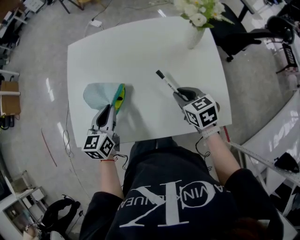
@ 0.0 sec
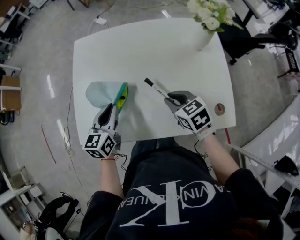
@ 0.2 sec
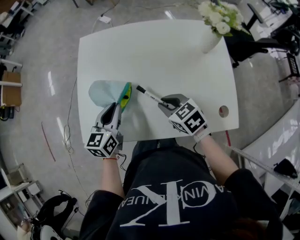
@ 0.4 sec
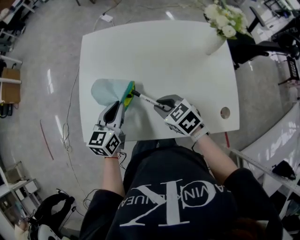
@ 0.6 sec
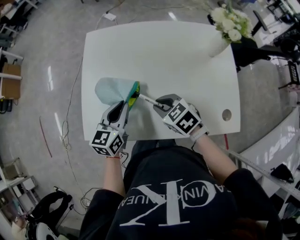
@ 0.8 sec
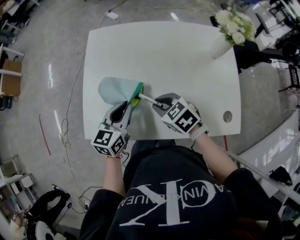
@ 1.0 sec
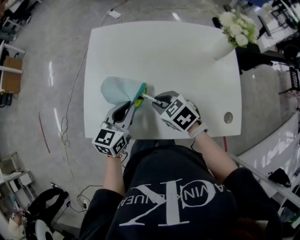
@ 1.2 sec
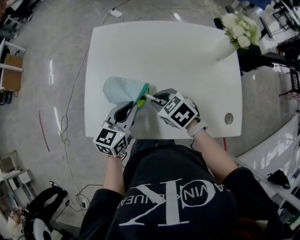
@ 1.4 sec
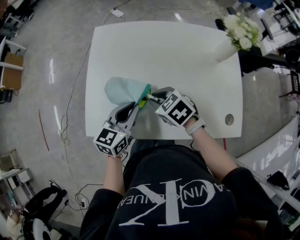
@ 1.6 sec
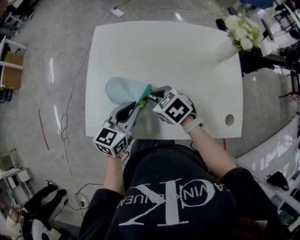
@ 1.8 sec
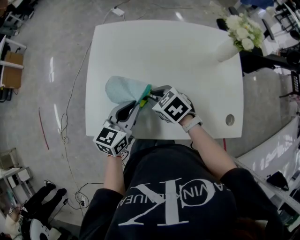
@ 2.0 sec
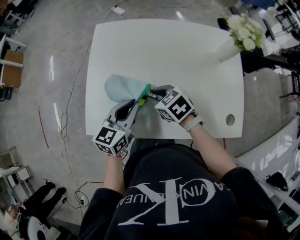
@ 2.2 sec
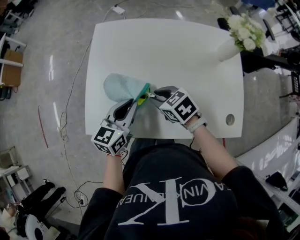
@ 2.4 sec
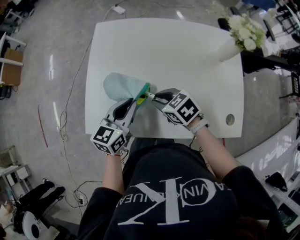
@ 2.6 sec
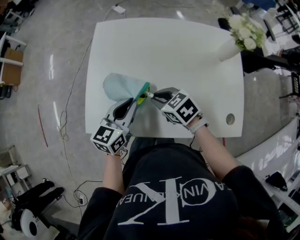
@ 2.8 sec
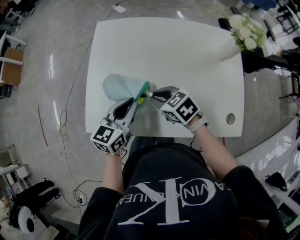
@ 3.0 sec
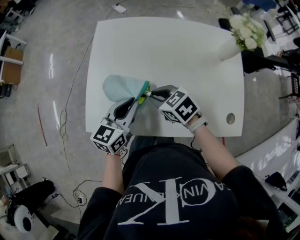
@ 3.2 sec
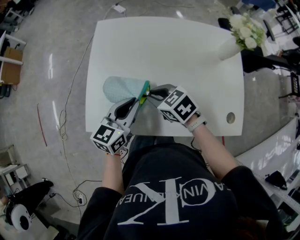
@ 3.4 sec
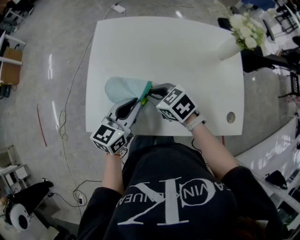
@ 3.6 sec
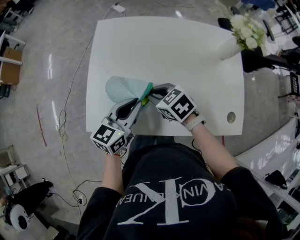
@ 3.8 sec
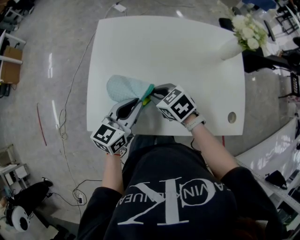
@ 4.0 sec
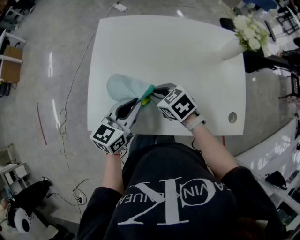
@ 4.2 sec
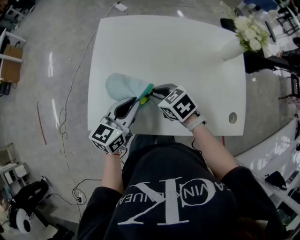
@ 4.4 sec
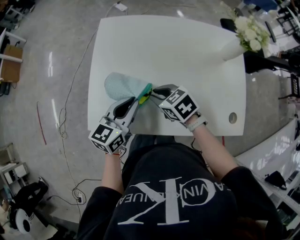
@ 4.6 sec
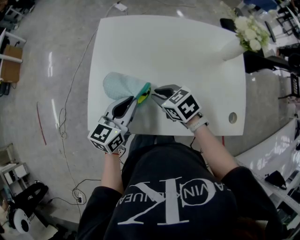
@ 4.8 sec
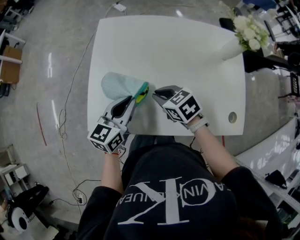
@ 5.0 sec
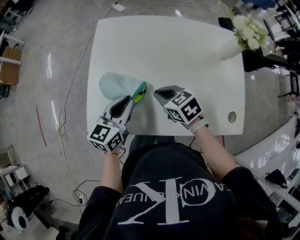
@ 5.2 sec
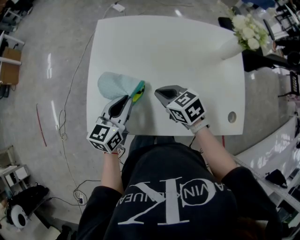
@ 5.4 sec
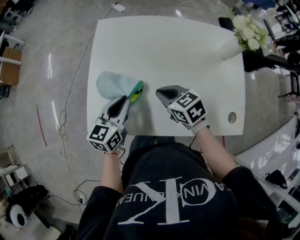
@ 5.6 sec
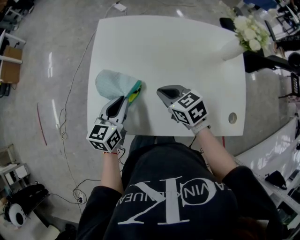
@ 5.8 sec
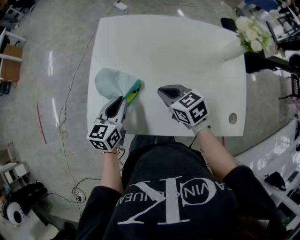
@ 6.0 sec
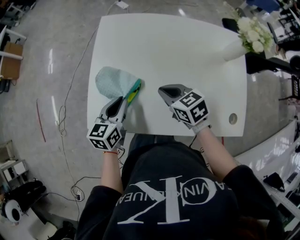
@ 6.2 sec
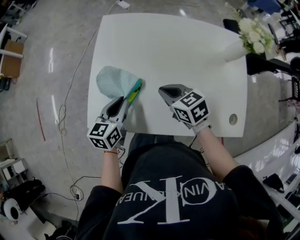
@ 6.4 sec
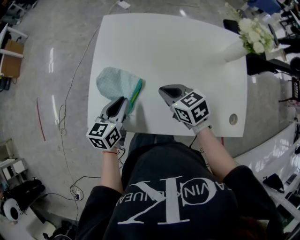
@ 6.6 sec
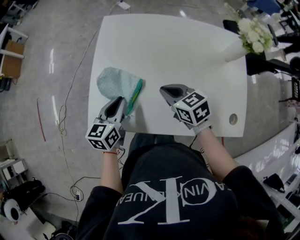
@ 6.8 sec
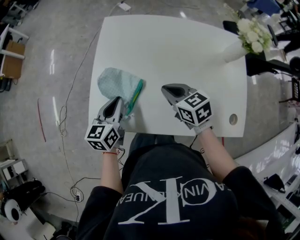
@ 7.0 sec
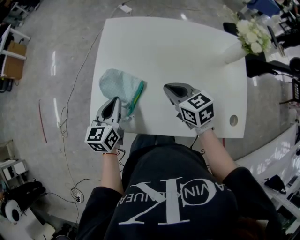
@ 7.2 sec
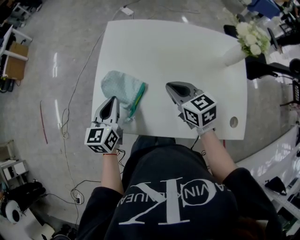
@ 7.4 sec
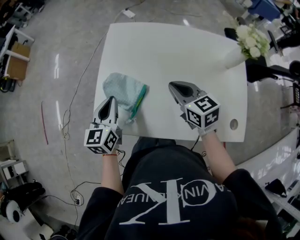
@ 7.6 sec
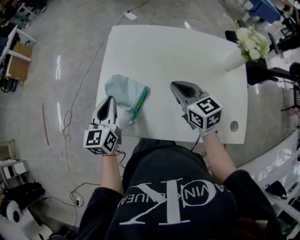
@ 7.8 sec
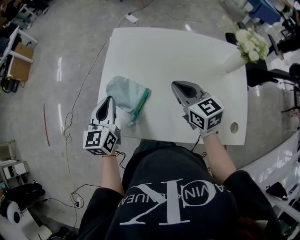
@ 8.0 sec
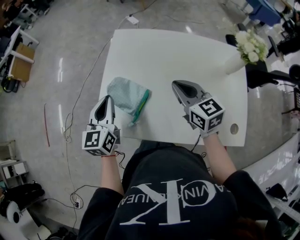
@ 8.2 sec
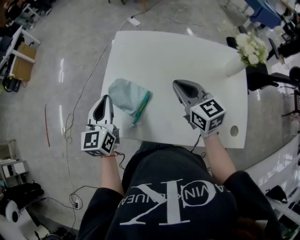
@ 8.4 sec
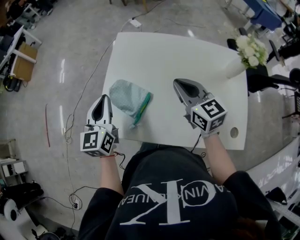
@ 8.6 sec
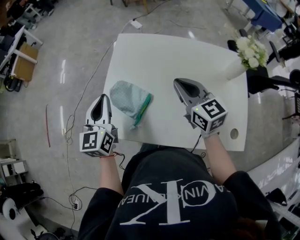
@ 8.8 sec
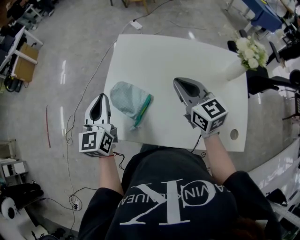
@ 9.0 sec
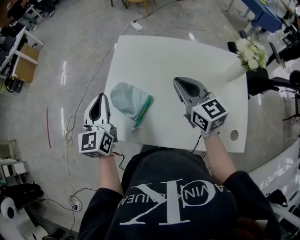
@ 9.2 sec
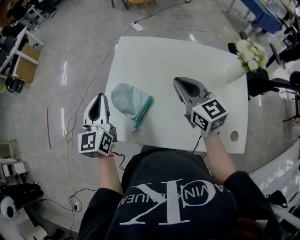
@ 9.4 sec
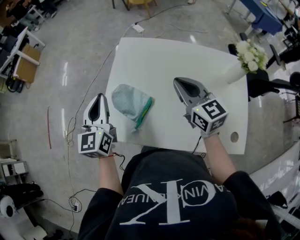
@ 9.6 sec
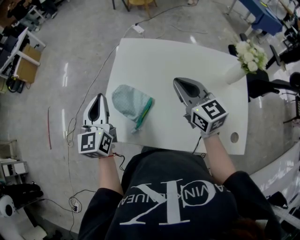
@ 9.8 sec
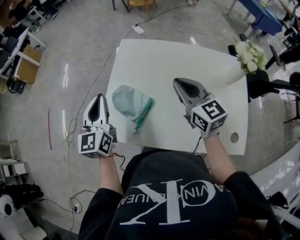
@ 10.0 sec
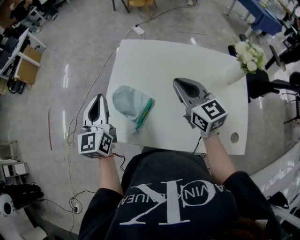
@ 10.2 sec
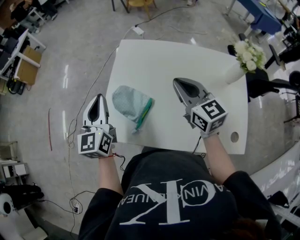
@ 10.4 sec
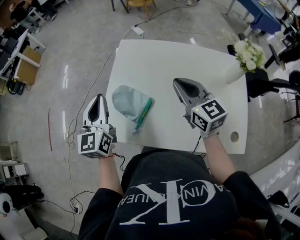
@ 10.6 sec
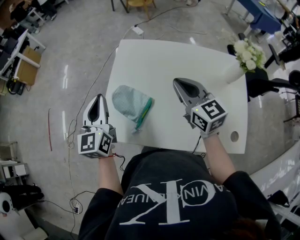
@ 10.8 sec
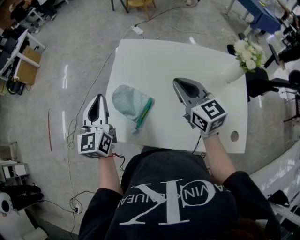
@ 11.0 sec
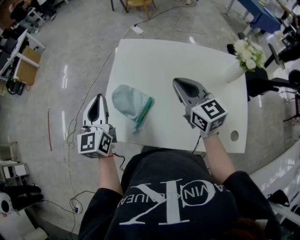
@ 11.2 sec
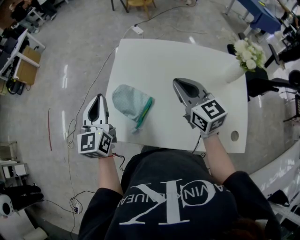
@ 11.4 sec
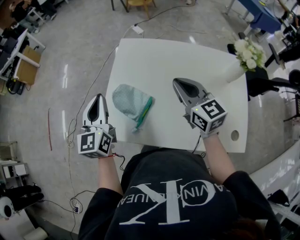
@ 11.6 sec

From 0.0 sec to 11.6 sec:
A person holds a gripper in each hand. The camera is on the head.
From 0.0 sec to 1.4 sec: The right gripper moves to the left, about 20 cm, and rotates about 30 degrees.
From 1.4 sec to 4.4 sec: The grippers stay close to where they were, moving slightly.
From 4.4 sec to 5.8 sec: The left gripper moves roughly 5 cm.
From 5.8 sec to 7.2 sec: There are only small adjustments of the grippers.
From 7.2 sec to 8.8 sec: Both grippers travel together upward, some 10 cm. The right gripper swivels about 20 degrees; the left gripper rotates approximately 20 degrees.
From 8.8 sec to 10.2 sec: There are only small adjustments of the grippers.
From 10.2 sec to 11.6 sec: Neither gripper changes place.

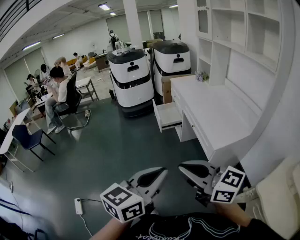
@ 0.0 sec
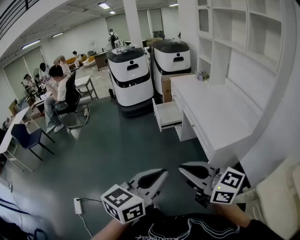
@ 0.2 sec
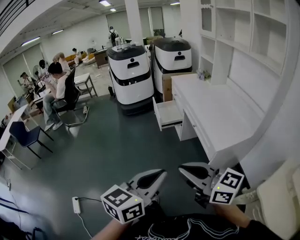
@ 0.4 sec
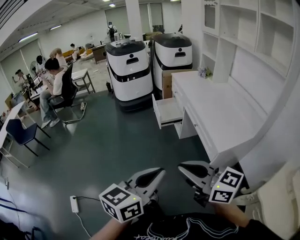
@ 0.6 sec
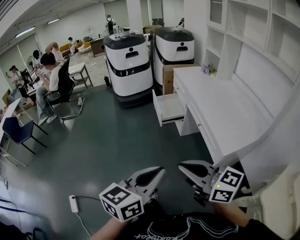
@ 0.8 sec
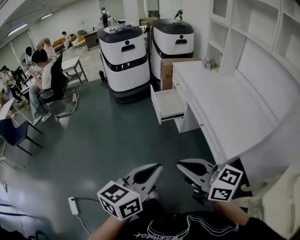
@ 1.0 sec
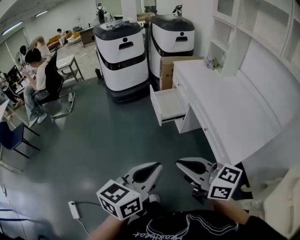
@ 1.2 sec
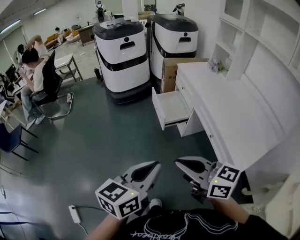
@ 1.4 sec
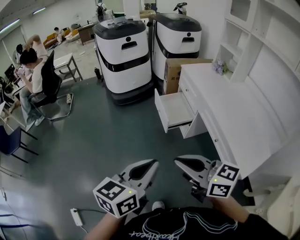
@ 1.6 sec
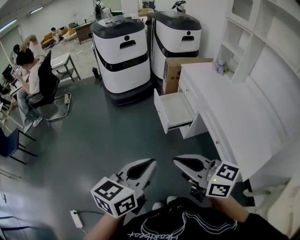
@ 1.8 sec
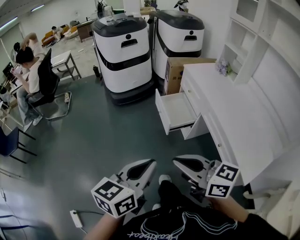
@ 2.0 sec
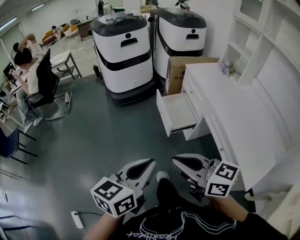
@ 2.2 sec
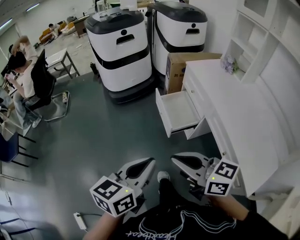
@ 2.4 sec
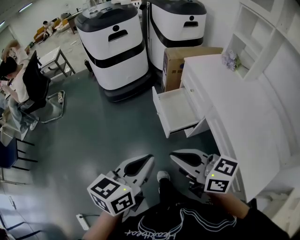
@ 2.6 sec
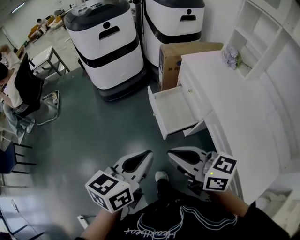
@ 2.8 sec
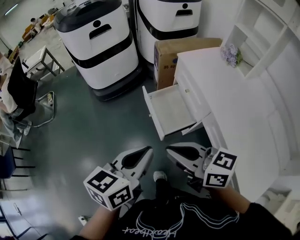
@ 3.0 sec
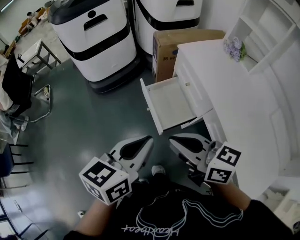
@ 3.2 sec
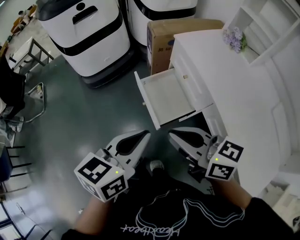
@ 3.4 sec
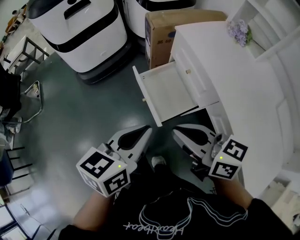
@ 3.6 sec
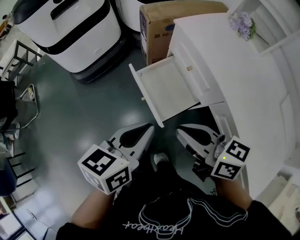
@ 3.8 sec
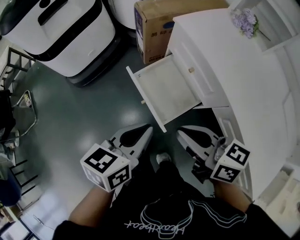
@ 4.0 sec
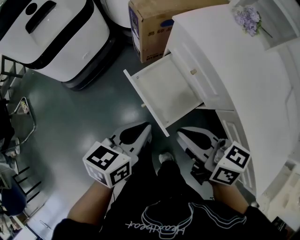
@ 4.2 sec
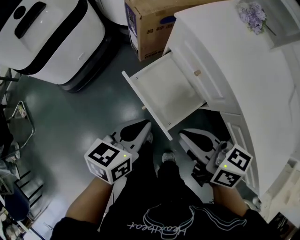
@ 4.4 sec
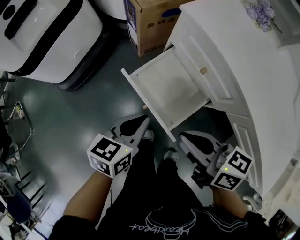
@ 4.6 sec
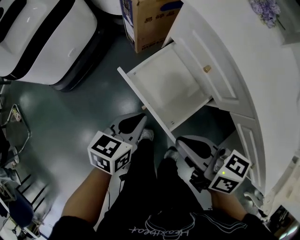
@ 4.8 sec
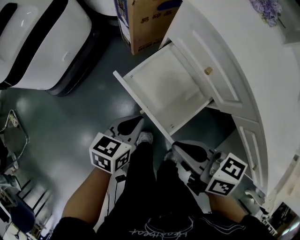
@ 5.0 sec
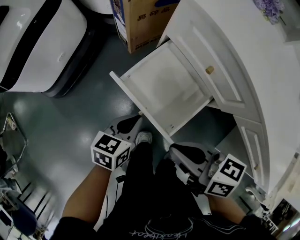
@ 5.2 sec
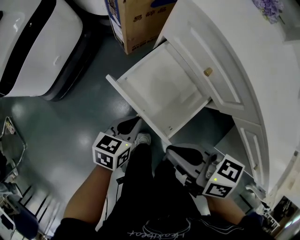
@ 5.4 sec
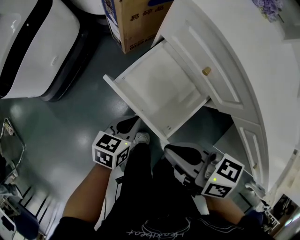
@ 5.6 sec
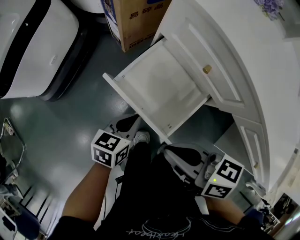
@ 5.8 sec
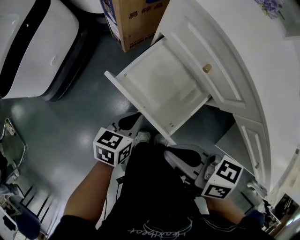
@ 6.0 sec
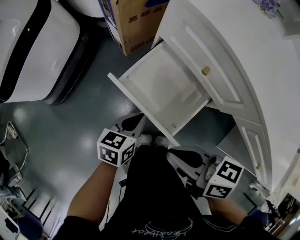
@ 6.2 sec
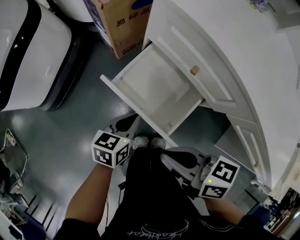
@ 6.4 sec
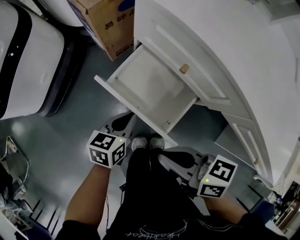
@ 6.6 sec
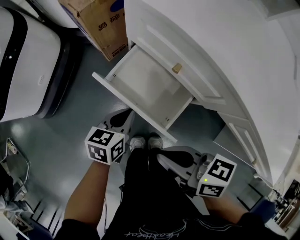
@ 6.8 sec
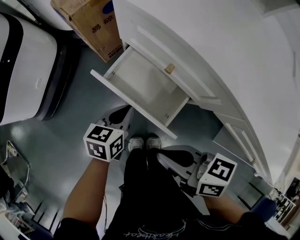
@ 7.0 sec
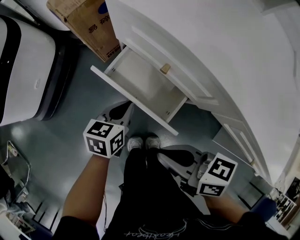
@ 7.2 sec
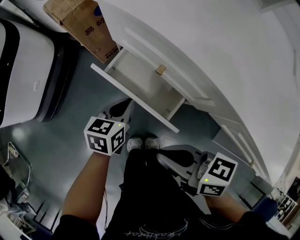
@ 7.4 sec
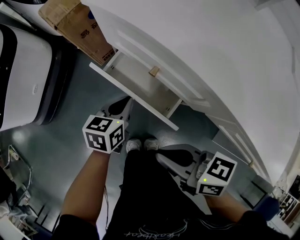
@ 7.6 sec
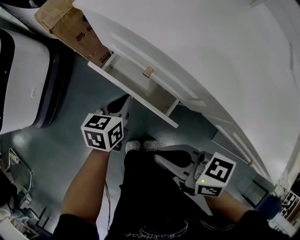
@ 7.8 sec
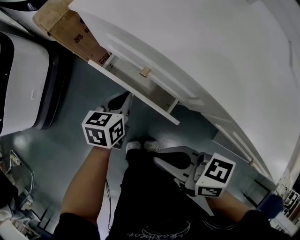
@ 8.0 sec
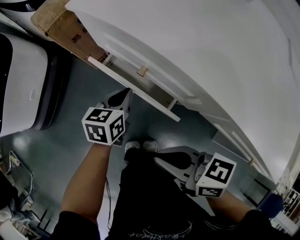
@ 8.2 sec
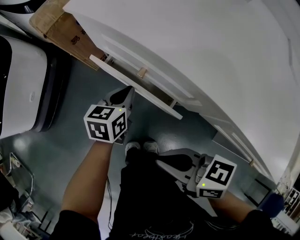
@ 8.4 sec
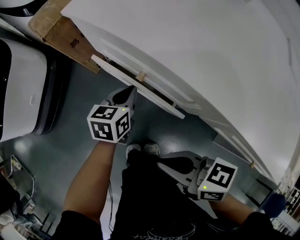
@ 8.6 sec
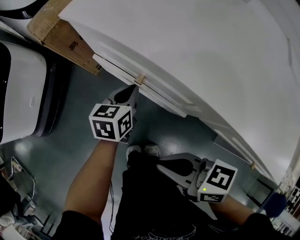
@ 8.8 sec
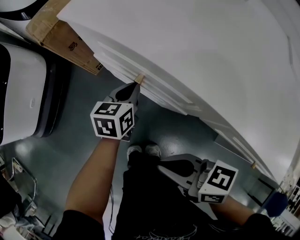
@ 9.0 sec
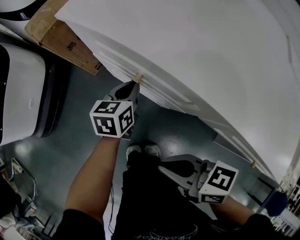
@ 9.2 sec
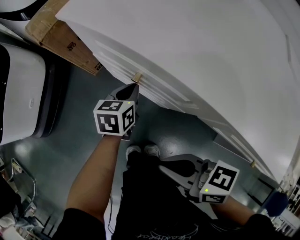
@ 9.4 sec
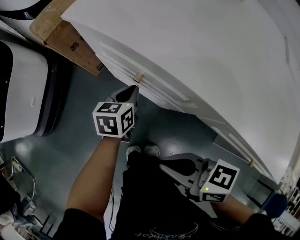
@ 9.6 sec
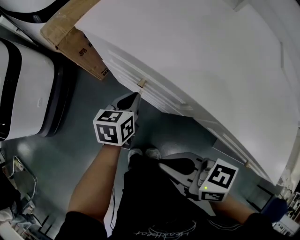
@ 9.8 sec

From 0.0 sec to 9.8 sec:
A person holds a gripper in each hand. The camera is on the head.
From 0.0 sec to 1.4 sec: The two grippers go some 30 cm forward.
From 1.4 sec to 2.8 sec: The grippers both shift forward by some 35 cm.
From 2.8 sec to 4.2 sec: The grippers both shift forward and downward by roughly 30 cm. The left gripper changes its angle by about 20 degrees; the right gripper turns by some 30 degrees.
From 4.2 sec to 5.6 sec: The left gripper travels downward by approximately 25 cm. Meanwhile the right gripper travels downward by roughly 15 cm.
From 5.6 sec to 7.0 sec: The left gripper goes about 10 cm to the right and forward. Meanwhile the right gripper moves to the right, some 5 cm.
From 7.0 sec to 8.4 sec: The left gripper travels to the right and forward by some 10 cm.
From 8.4 sec to 9.8 sec: There are only small adjustments of the grippers.

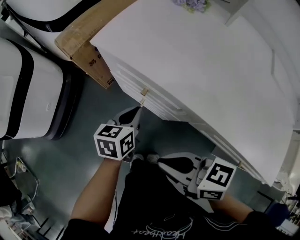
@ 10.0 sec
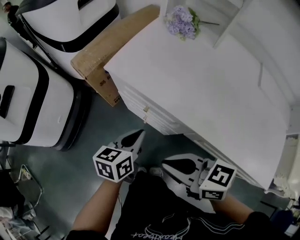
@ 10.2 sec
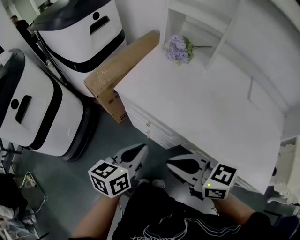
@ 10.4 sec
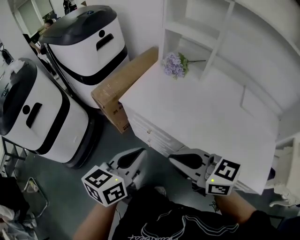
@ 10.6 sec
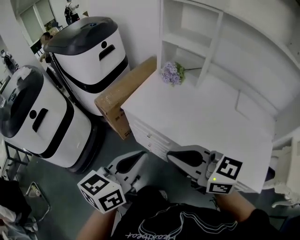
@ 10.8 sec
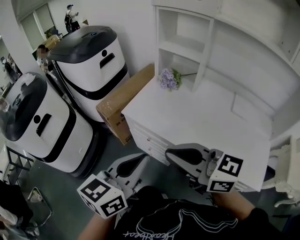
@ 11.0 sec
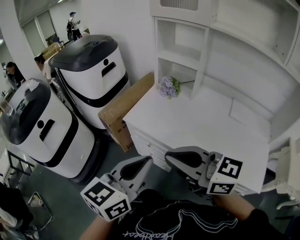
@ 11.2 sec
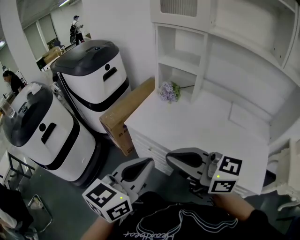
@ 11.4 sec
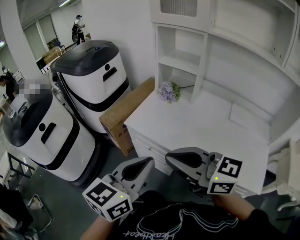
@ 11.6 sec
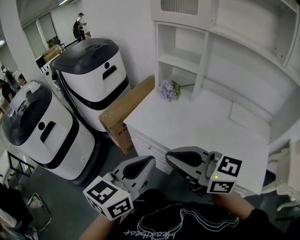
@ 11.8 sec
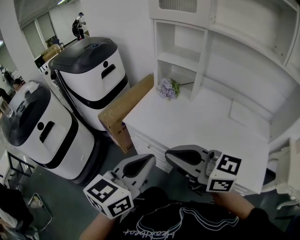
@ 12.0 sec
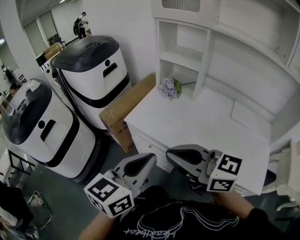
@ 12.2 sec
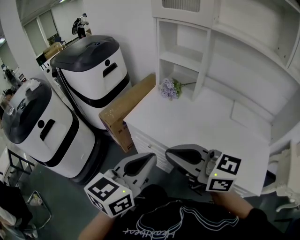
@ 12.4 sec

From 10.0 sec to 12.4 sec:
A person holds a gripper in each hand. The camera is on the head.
From 10.0 sec to 11.2 sec: Both grippers move upward, roughly 40 cm. The left gripper turns by approximately 30 degrees, while the right gripper rotates approximately 30 degrees.
From 11.2 sec to 12.4 sec: The grippers stay close to where they were, moving slightly.
